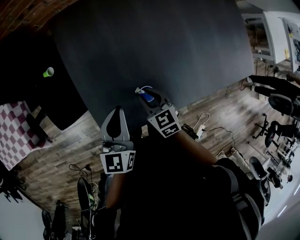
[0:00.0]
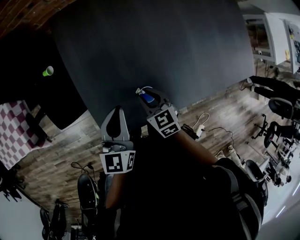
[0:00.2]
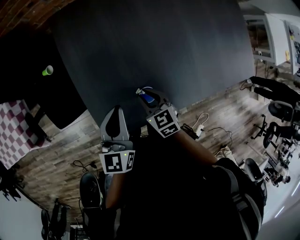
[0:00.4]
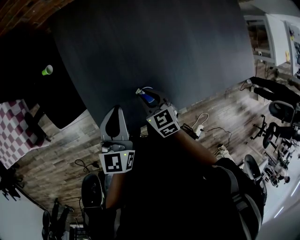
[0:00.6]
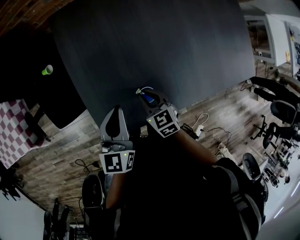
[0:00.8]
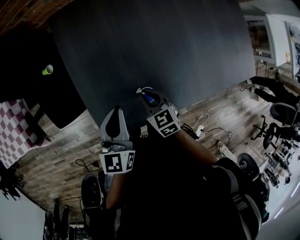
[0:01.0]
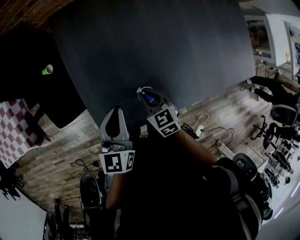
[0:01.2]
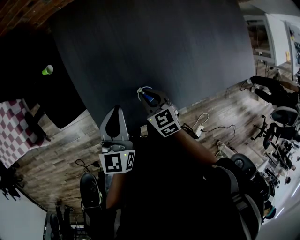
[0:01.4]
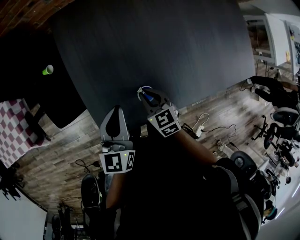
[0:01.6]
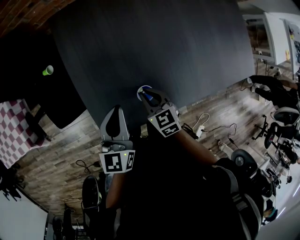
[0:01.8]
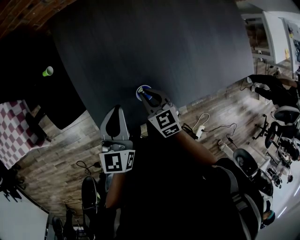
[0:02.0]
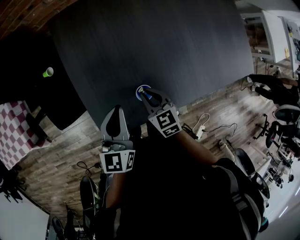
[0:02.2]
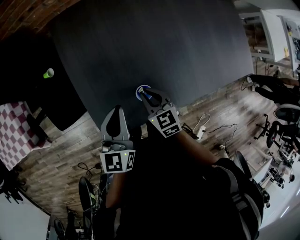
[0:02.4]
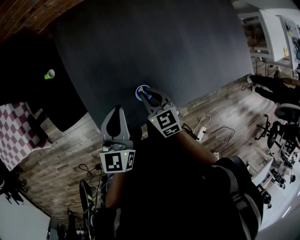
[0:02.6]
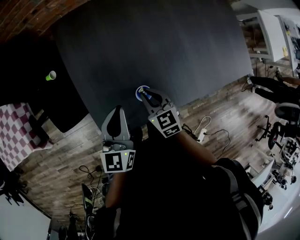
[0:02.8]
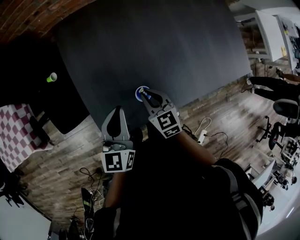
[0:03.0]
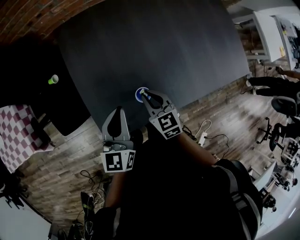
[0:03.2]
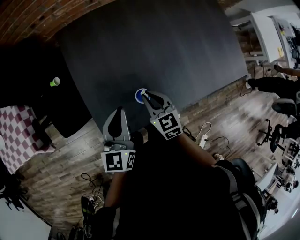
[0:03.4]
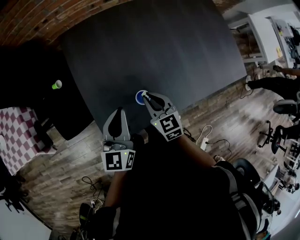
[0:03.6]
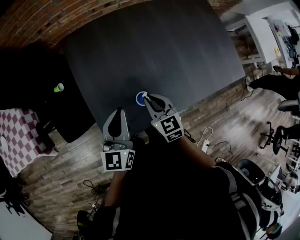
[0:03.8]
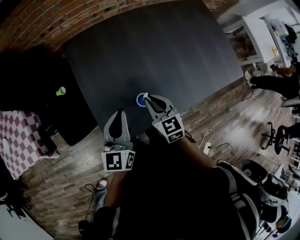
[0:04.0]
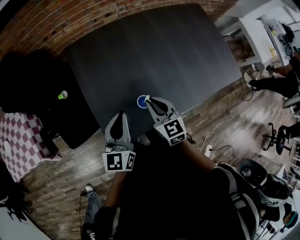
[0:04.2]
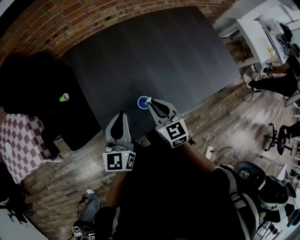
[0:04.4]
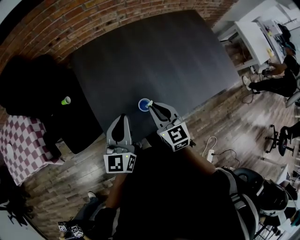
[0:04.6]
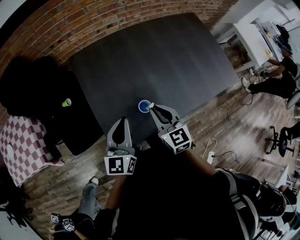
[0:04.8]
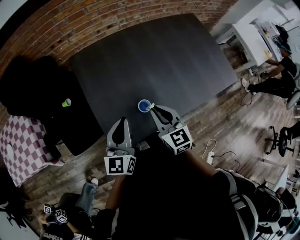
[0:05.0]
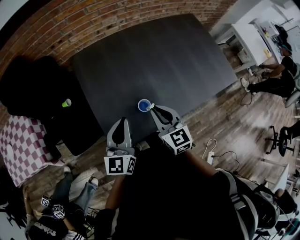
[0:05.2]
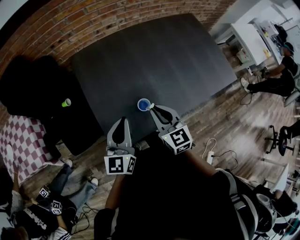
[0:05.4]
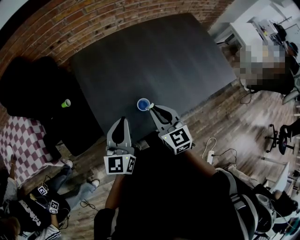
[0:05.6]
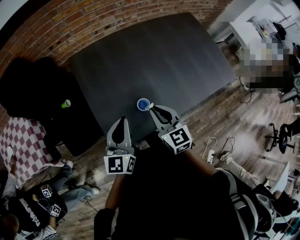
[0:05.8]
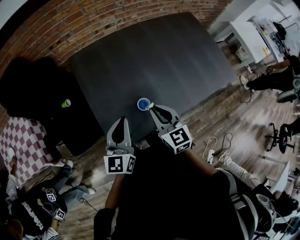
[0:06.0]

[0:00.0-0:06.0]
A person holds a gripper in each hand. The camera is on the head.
0.0 to 1.6 s: Both grippers stay about where they are.
1.6 to 3.0 s: The grippers make only small movements.
3.0 to 4.4 s: The right gripper goes about 10 cm upward; the left gripper moves upward, approximately 5 cm.
4.4 to 6.0 s: There are only small adjustments of the grippers.

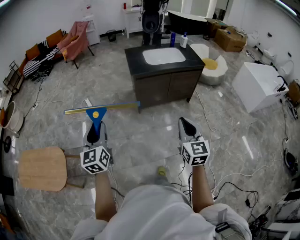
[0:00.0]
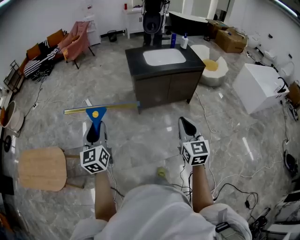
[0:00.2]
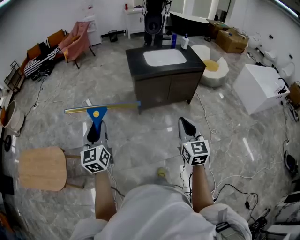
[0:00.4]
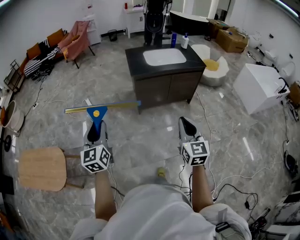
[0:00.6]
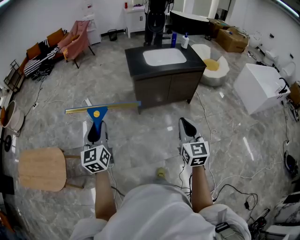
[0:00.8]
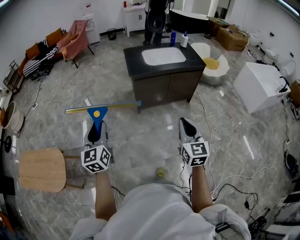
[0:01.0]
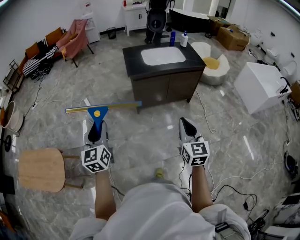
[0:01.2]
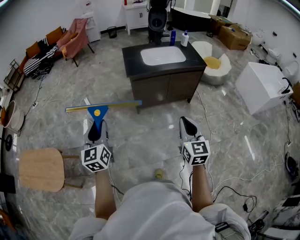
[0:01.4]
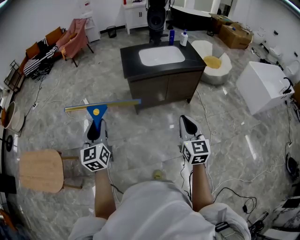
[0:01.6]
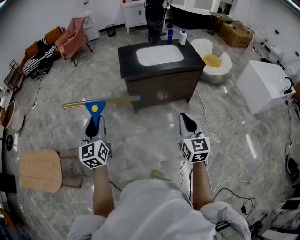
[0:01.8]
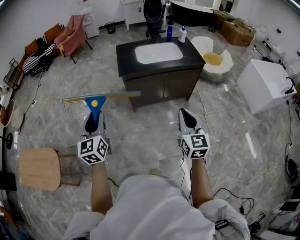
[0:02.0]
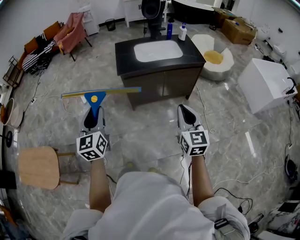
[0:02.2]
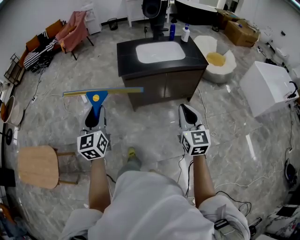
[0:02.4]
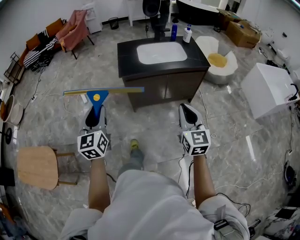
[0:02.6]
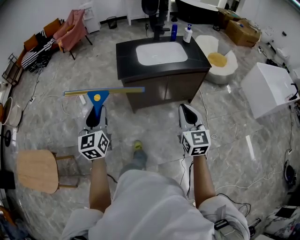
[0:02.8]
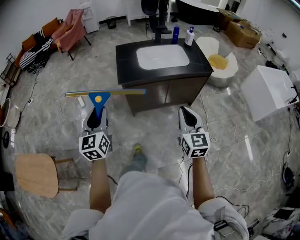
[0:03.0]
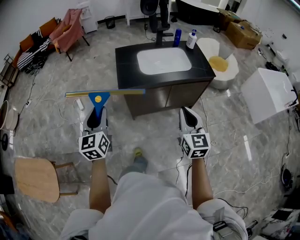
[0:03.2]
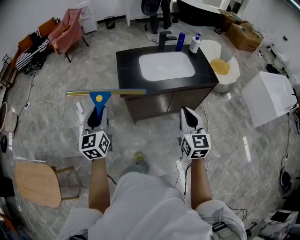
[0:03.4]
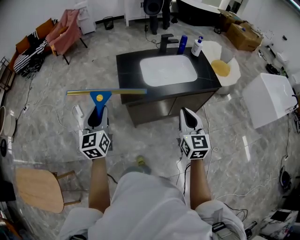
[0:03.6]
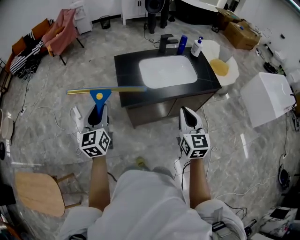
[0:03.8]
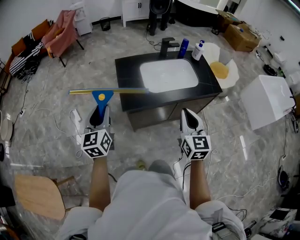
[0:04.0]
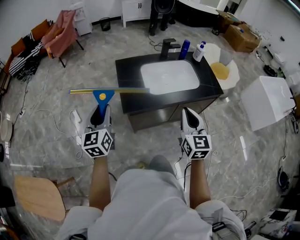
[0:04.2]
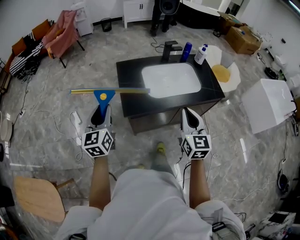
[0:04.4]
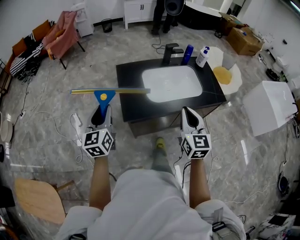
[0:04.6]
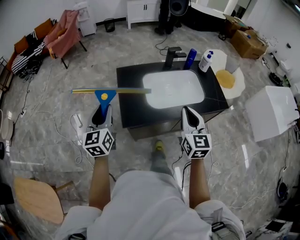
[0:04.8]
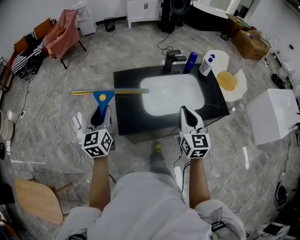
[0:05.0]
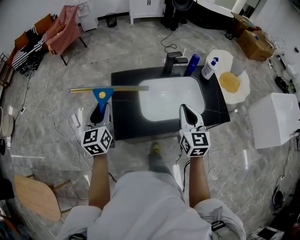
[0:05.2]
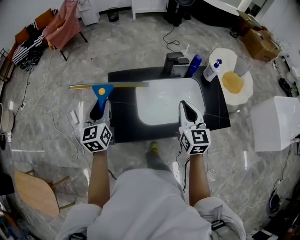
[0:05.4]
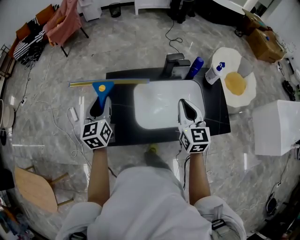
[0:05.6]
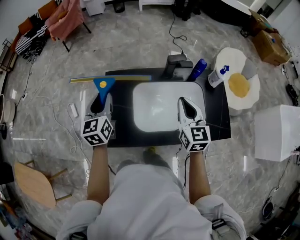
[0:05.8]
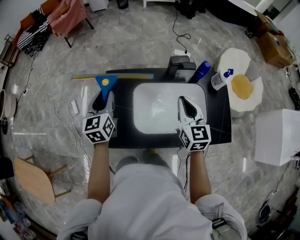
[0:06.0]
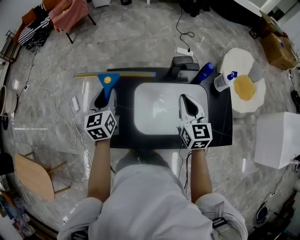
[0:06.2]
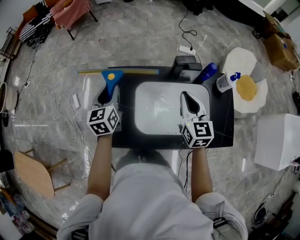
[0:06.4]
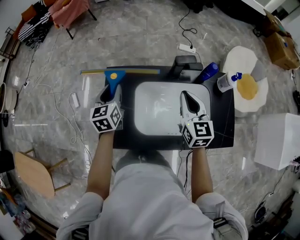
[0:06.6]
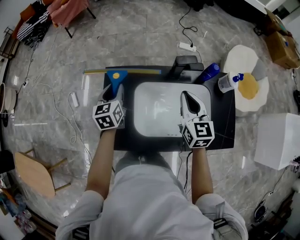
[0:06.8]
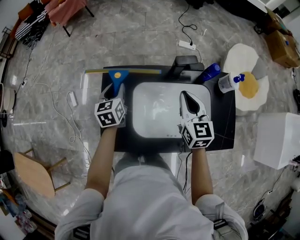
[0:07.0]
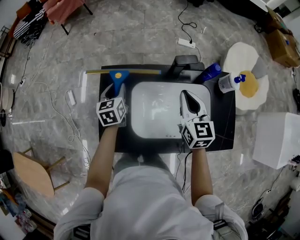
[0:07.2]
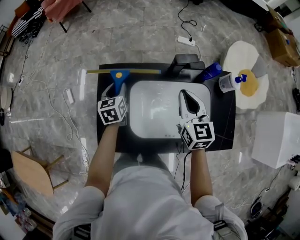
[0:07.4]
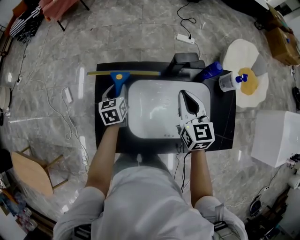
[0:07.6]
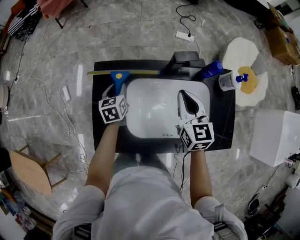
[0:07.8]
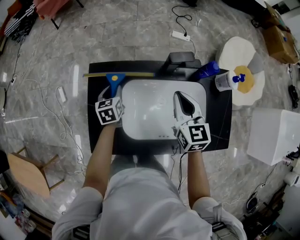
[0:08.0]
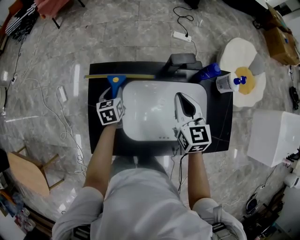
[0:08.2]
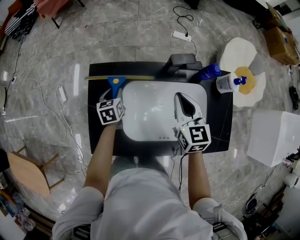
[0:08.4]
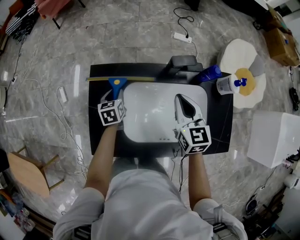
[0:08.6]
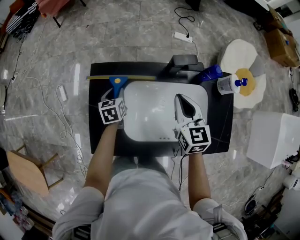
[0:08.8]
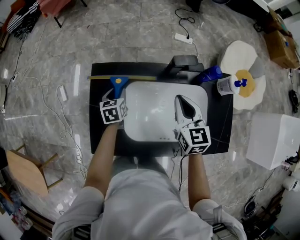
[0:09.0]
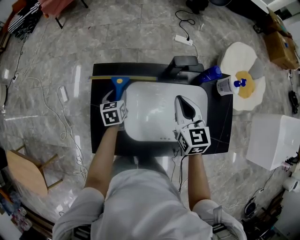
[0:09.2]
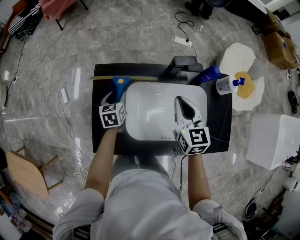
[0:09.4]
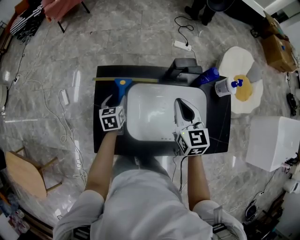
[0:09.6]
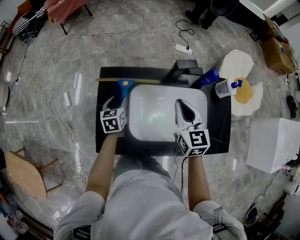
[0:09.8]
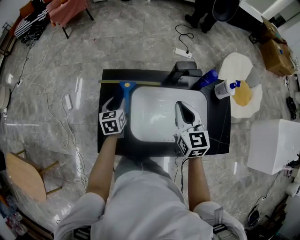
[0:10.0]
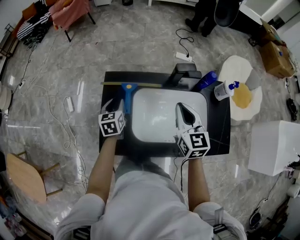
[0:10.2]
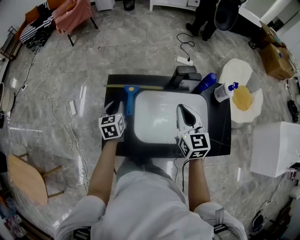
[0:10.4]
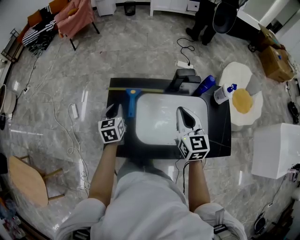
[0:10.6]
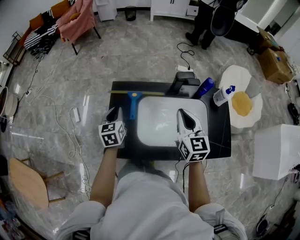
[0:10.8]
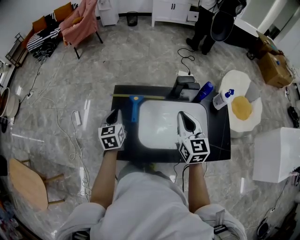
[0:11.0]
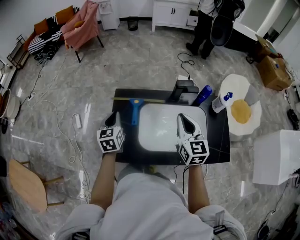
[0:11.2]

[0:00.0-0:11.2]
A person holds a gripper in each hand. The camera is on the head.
0.0 to 1.6 s: The grippers both shift forward and to the right by approximately 15 cm.
1.6 to 3.2 s: Both grippers travel together forward, approximately 30 cm.
3.2 to 4.8 s: Both grippers travel together forward, about 35 cm.
4.8 to 6.4 s: The right gripper is displaced forward by about 35 cm. Meanwhile the left gripper is displaced forward and to the right by approximately 40 cm.
6.4 to 8.0 s: The left gripper travels downward by about 20 cm, and rotates some 20 degrees; the right gripper travels downward and forward by some 10 cm.
8.0 to 9.6 s: The grippers make only small movements.
9.6 to 11.2 s: The right gripper heads upward and backward, covering some 15 cm. Meanwhile the left gripper is displaced upward and backward by approximately 20 cm, and closes.

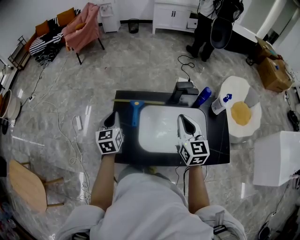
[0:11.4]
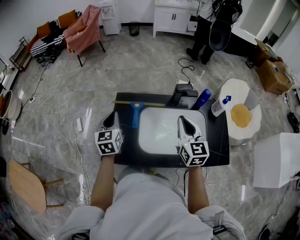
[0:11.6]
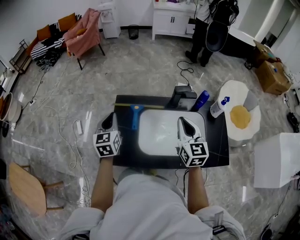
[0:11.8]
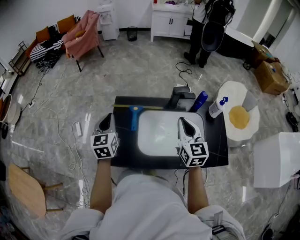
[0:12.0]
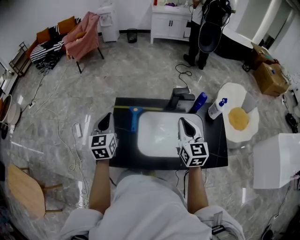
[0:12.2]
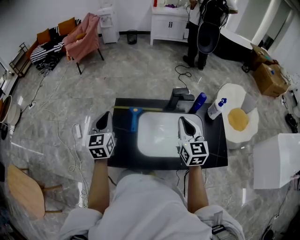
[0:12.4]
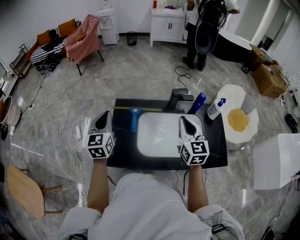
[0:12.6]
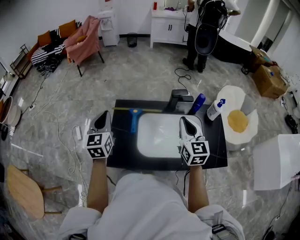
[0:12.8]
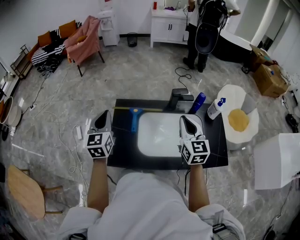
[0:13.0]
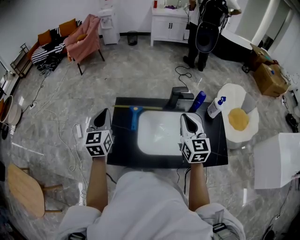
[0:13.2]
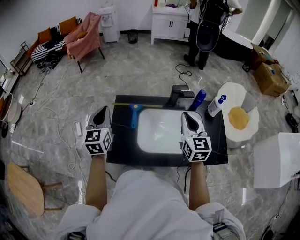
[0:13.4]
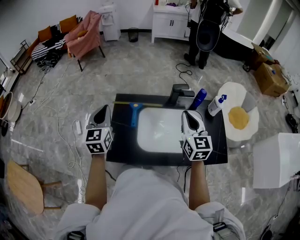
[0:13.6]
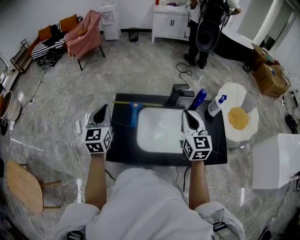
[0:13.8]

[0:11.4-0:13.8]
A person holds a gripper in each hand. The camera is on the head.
11.4 to 12.6 s: The left gripper shifts some 10 cm upward.
12.6 to 13.8 s: The grippers stay close to where they were, moving slightly.

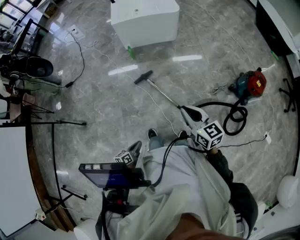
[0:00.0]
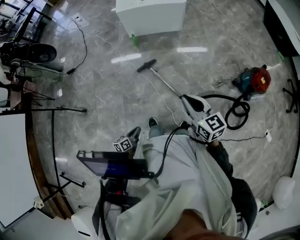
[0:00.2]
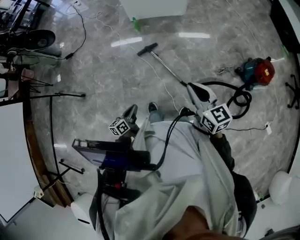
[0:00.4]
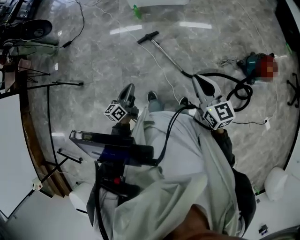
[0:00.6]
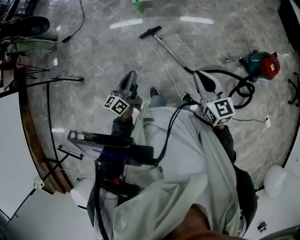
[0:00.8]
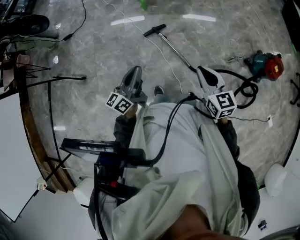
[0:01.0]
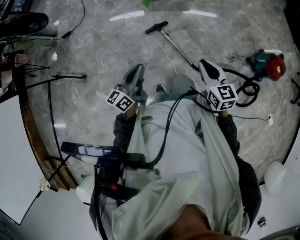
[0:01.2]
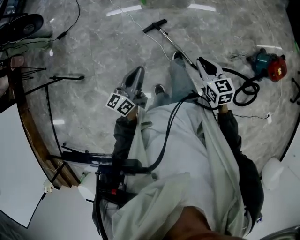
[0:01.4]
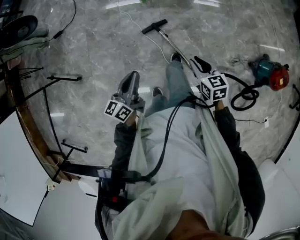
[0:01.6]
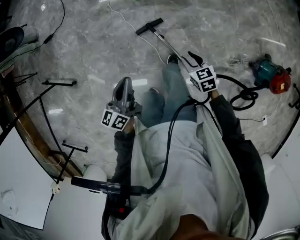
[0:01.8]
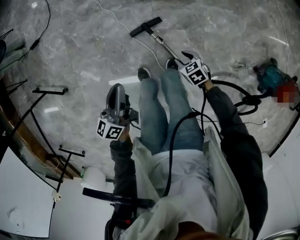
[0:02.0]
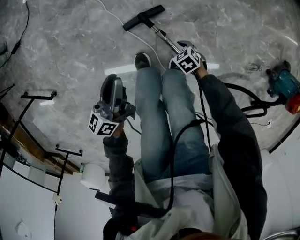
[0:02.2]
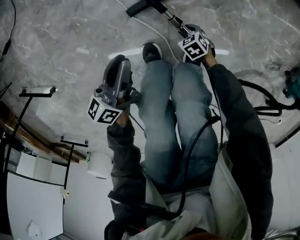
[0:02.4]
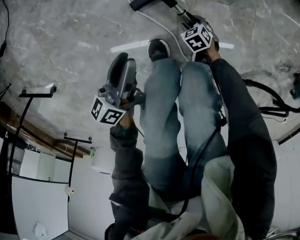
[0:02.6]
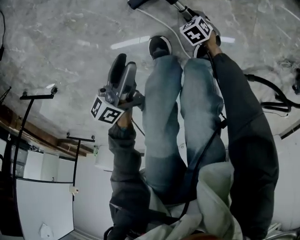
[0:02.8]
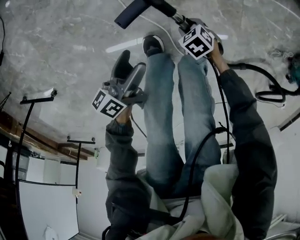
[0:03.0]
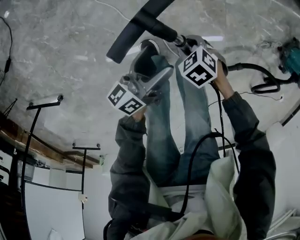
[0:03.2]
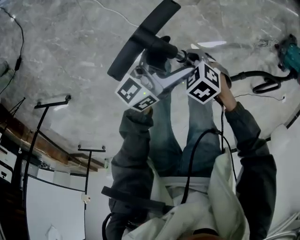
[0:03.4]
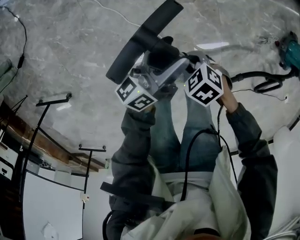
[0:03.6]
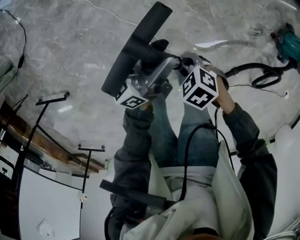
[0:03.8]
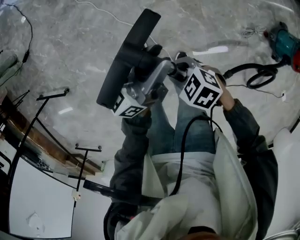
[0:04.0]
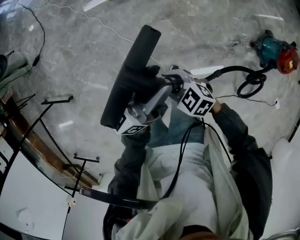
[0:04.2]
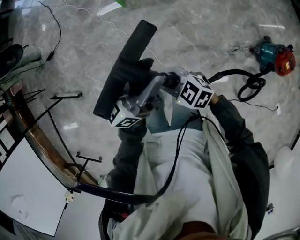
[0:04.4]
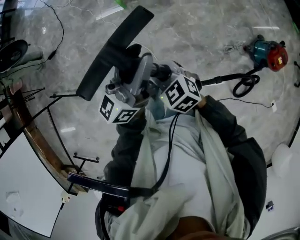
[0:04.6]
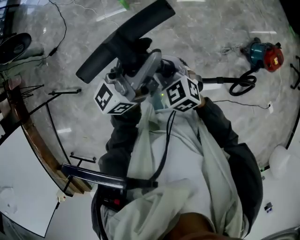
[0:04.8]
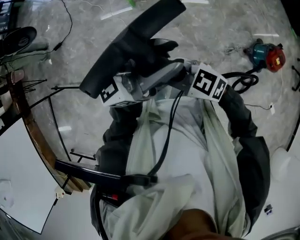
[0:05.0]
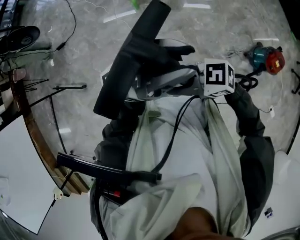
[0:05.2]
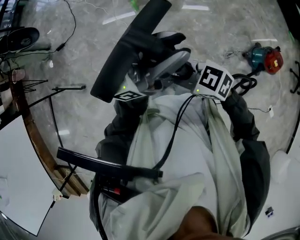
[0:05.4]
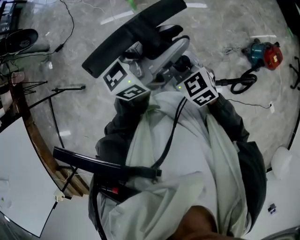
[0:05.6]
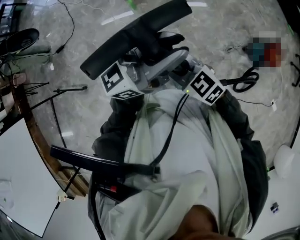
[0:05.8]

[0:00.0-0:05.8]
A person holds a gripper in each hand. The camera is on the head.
0.0 to 1.4 s: The left gripper heads forward, covering about 30 cm, and turns by approximately 30 degrees, while the right gripper is displaced forward and downward by some 20 cm.
1.4 to 2.8 s: Both grippers travel together downward, about 70 cm. The right gripper tips its fingers downward by roughly 40 degrees, and opens up, while the left gripper changes its angle by about 30 degrees, and opens up.
2.8 to 4.4 s: The two grippers go about 70 cm upward. The left gripper tips its fingers upward by approximately 40 degrees, and opens, then closes again; the right gripper angles its fingers upward, by roughly 50 degrees.
4.4 to 5.8 s: Both grippers move upward, approximately 20 cm. The left gripper changes its angle by some 30 degrees.
